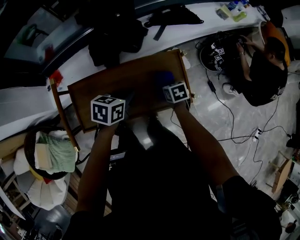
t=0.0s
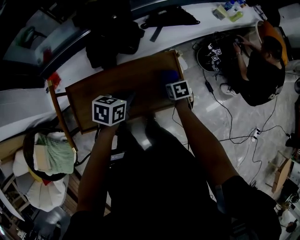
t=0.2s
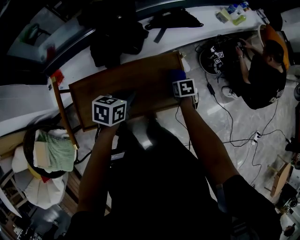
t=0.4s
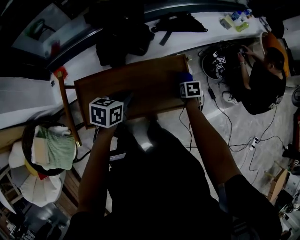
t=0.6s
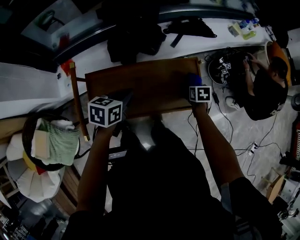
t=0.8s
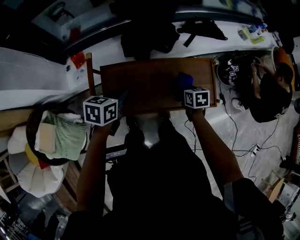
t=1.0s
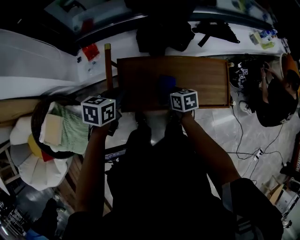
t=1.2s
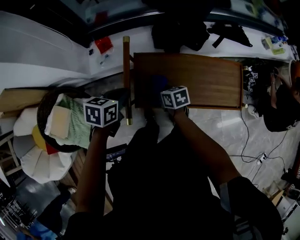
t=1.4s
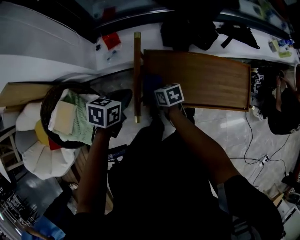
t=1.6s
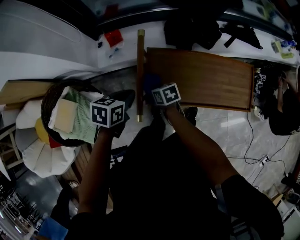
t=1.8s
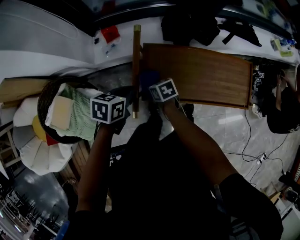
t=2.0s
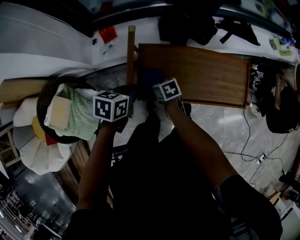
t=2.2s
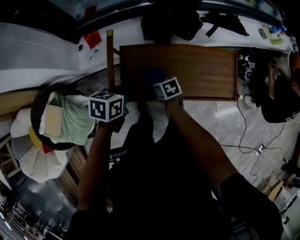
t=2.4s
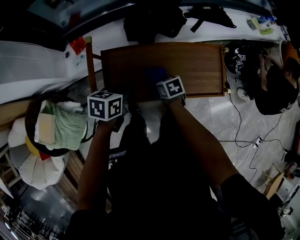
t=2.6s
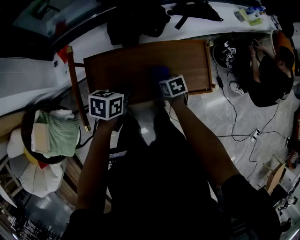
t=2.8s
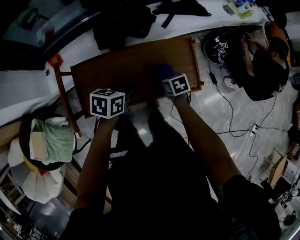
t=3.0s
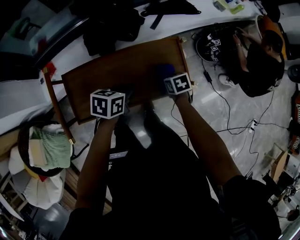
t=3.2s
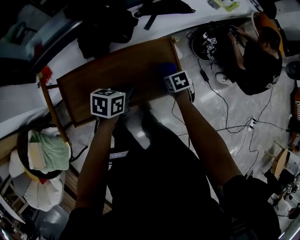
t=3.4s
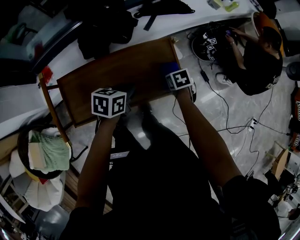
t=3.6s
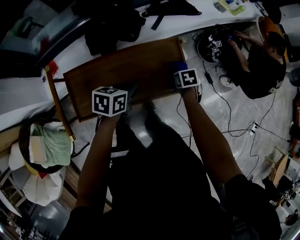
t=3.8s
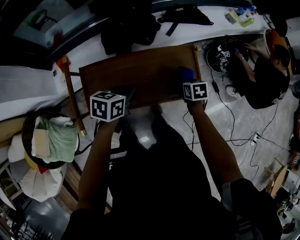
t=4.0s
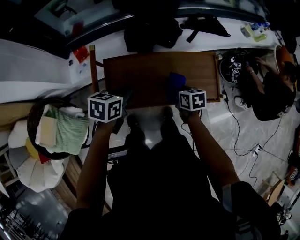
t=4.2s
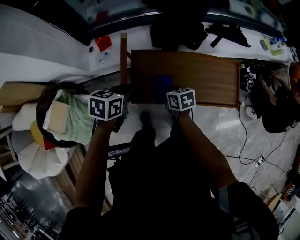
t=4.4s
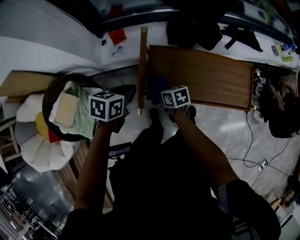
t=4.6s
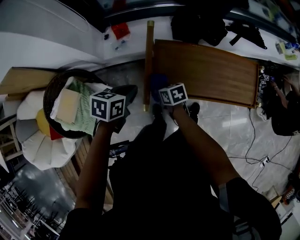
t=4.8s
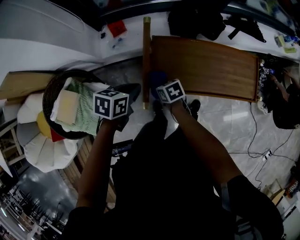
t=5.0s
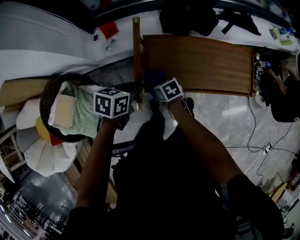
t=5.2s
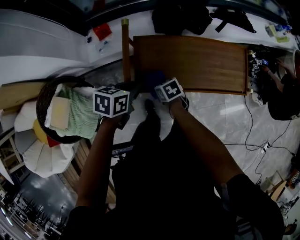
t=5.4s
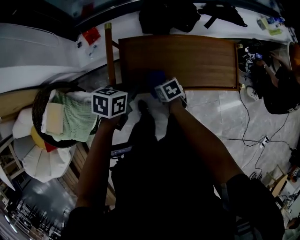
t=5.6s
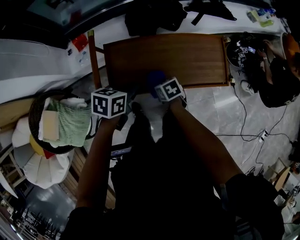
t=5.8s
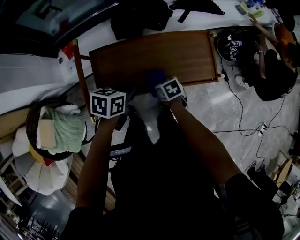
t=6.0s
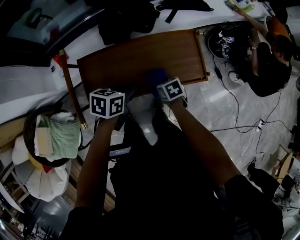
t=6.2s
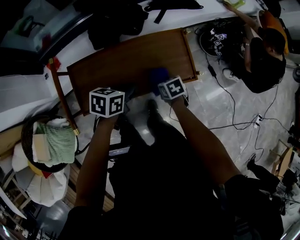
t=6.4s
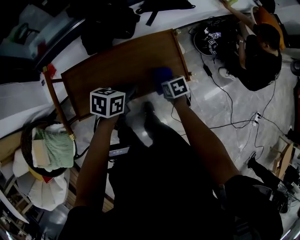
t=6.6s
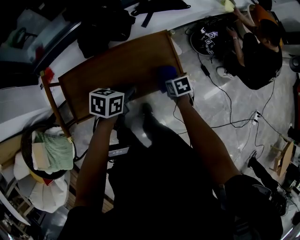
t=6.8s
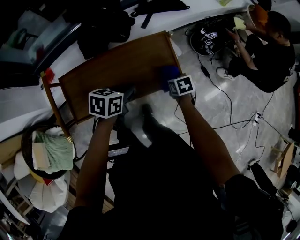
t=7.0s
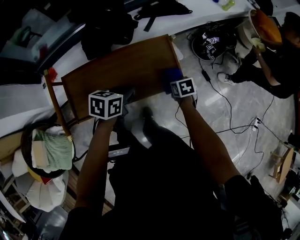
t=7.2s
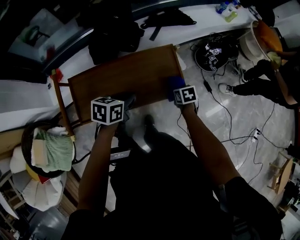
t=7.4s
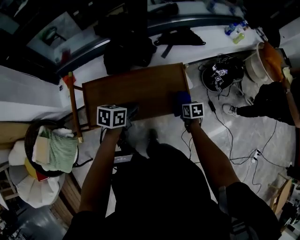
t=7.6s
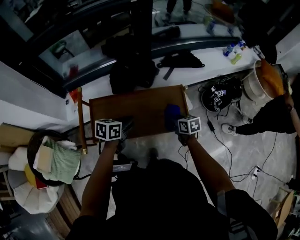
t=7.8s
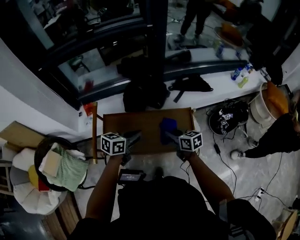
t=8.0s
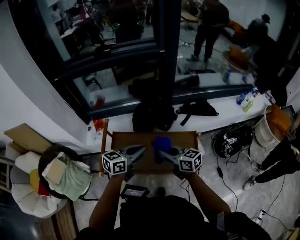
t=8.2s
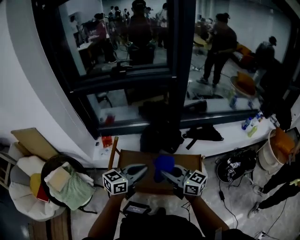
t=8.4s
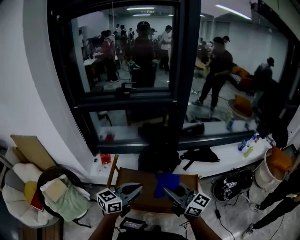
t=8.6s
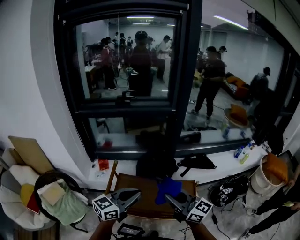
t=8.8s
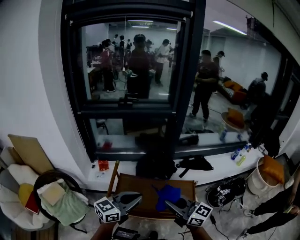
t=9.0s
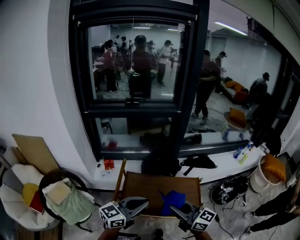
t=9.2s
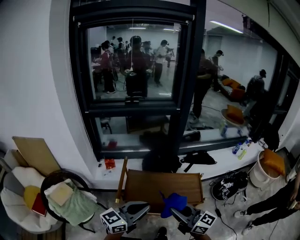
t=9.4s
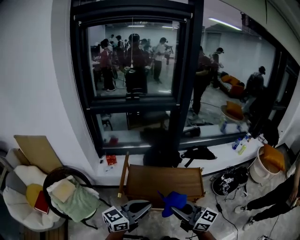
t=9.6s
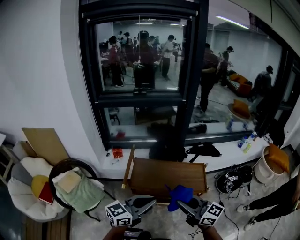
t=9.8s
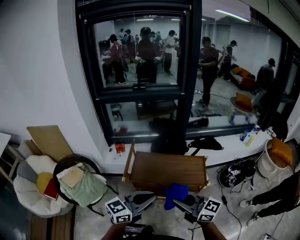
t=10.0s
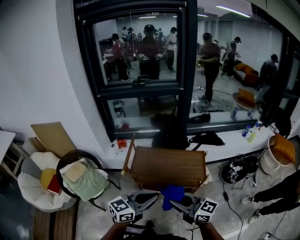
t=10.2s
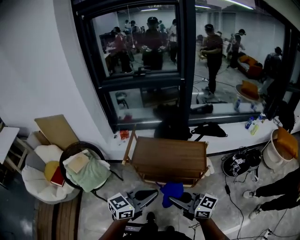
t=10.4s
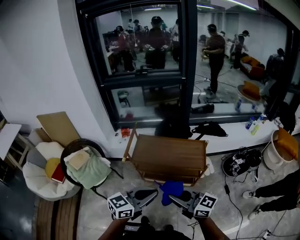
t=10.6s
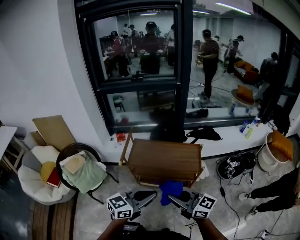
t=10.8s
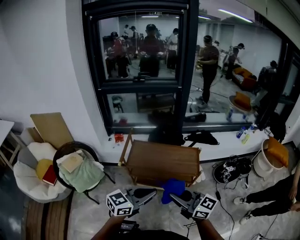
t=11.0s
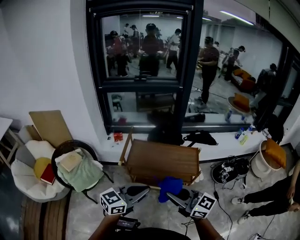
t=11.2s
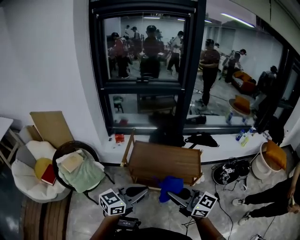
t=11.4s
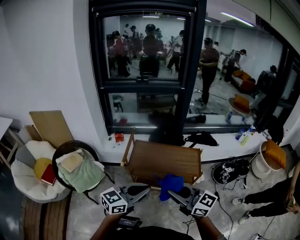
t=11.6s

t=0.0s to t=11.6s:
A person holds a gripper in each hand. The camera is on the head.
t=0.0s to t=1.4s: The left gripper changes place by some 35 cm. The right gripper moves some 40 cm, and swivels approximately 20 degrees.
t=1.4s to t=2.8s: Both grippers travel together to the right, approximately 25 cm.
t=2.8s to t=4.4s: The right gripper moves about 20 cm, while the left gripper changes place by some 20 cm.
t=4.4s to t=5.8s: The right gripper travels downward by roughly 5 cm, and moves roughly 15 cm to the left and comes back. The left gripper shifts approximately 10 cm to the right.
t=5.8s to t=7.2s: Both grippers travel together to the right, some 30 cm. The right gripper turns by about 20 degrees.
t=7.2s to t=8.8s: The left gripper shifts approximately 30 cm upward, and tilts its fingers about 40 degrees upward, while the right gripper travels upward by about 50 cm, and points its fingers about 70 degrees further upward.
t=8.8s to t=10.2s: Both grippers move backward, about 30 cm.
t=10.2s to t=11.6s: The right gripper moves about 5 cm. The left gripper moves to the left, approximately 5 cm.

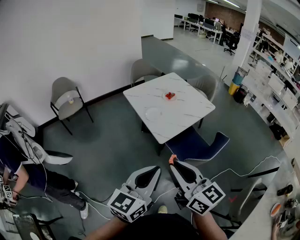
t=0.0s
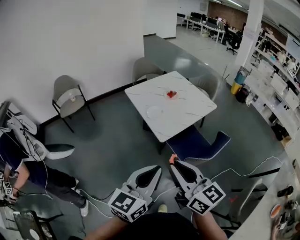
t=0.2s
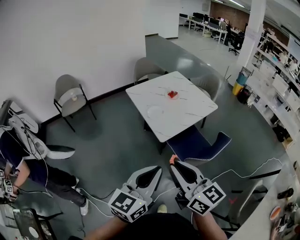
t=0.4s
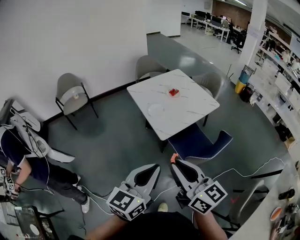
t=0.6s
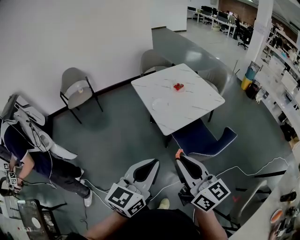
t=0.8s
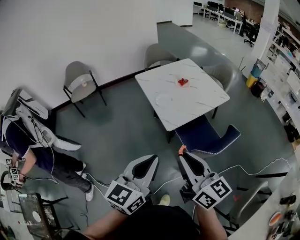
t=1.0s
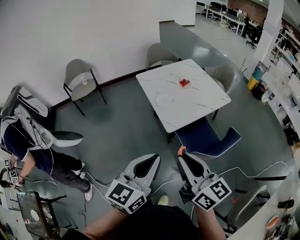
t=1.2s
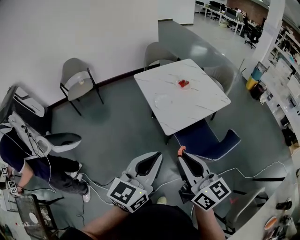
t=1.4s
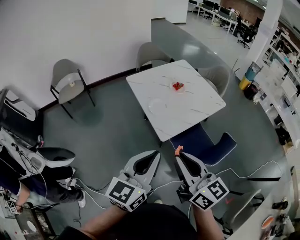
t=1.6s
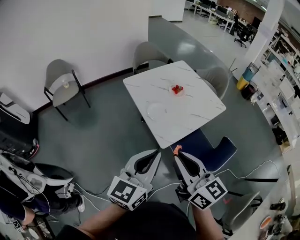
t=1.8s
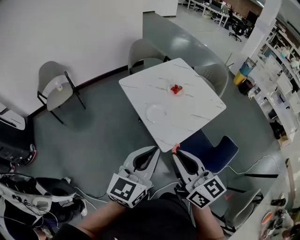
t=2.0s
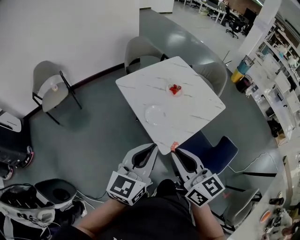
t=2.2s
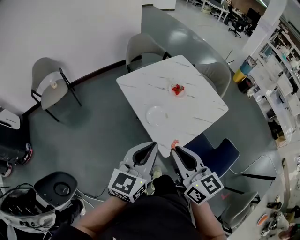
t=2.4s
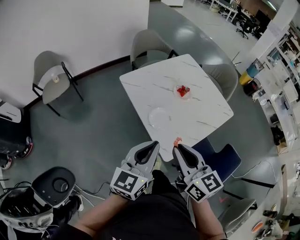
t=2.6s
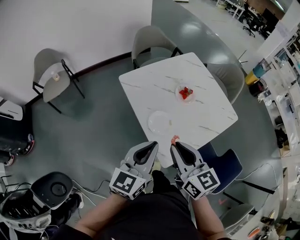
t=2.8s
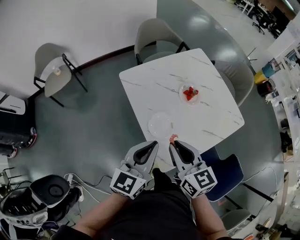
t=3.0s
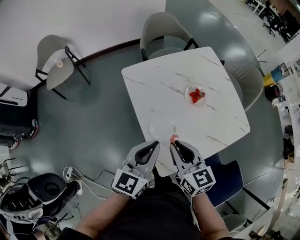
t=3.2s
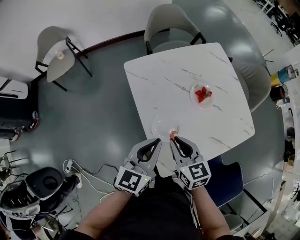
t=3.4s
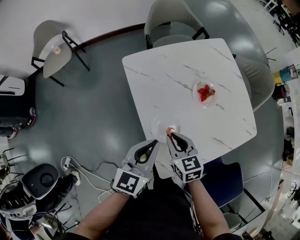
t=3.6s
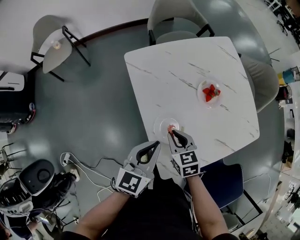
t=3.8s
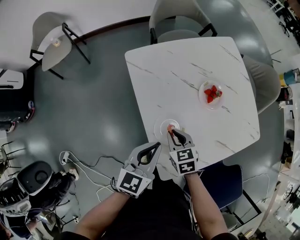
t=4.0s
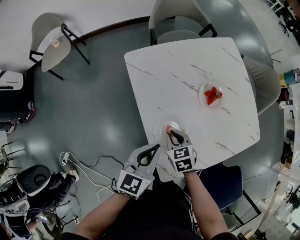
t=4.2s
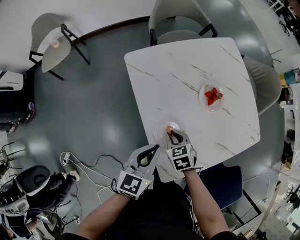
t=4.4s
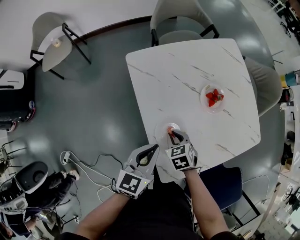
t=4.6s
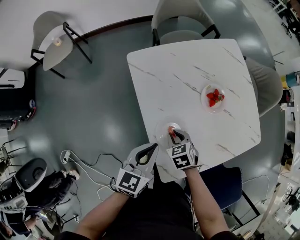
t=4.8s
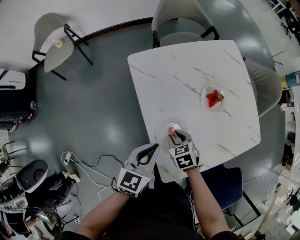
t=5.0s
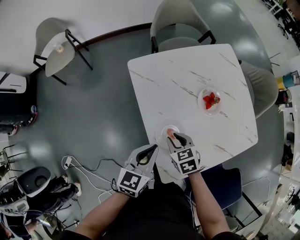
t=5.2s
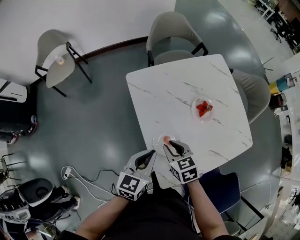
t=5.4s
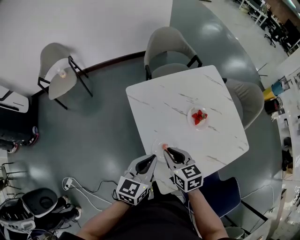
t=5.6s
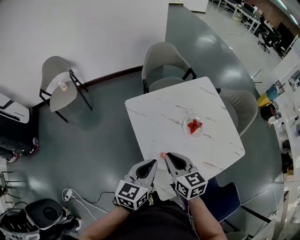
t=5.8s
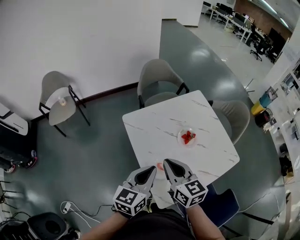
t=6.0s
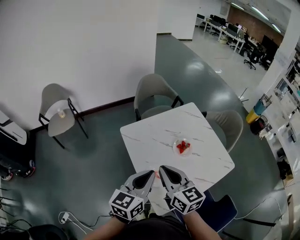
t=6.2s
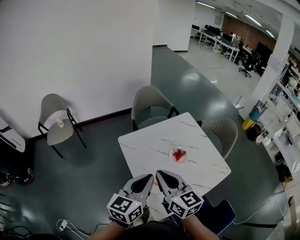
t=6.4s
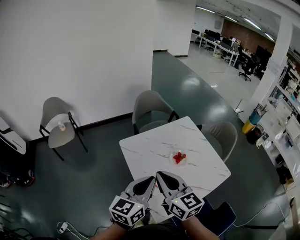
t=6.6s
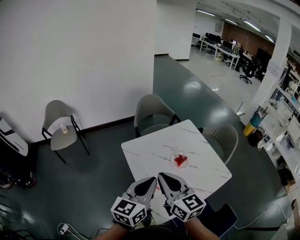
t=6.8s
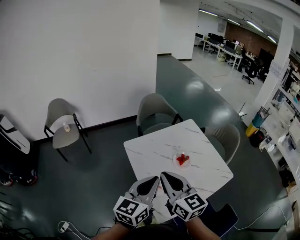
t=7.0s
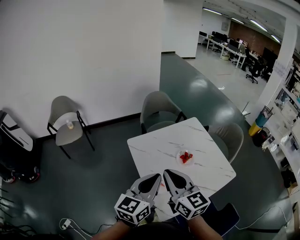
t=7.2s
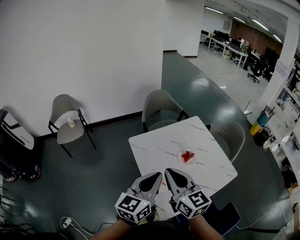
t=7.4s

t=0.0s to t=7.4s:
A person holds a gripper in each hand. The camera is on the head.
t=0.0s to t=1.4s: Both grippers move forward, approximately 5 cm.
t=1.4s to t=3.0s: Both grippers are carried forward, approximately 40 cm.
t=3.0s to t=4.4s: The right gripper shifts approximately 30 cm downward, and tips its fingers downward by roughly 40 degrees; the left gripper heads downward and forward, covering about 15 cm.
t=4.4s to t=6.0s: The right gripper moves upward, some 30 cm, and tips its fingers upward by some 40 degrees. Meanwhile the left gripper is displaced upward by approximately 15 cm.
t=6.0s to t=7.4s: The two grippers go approximately 10 cm upward.

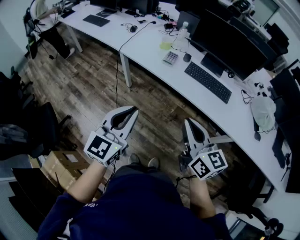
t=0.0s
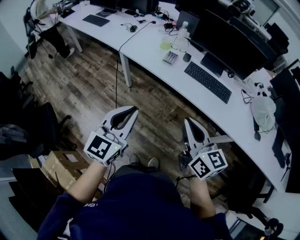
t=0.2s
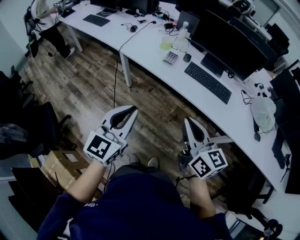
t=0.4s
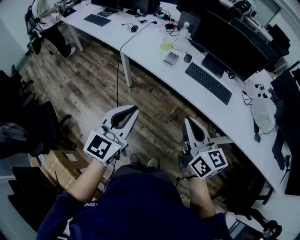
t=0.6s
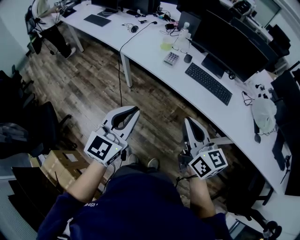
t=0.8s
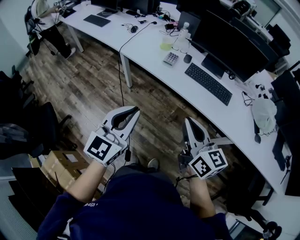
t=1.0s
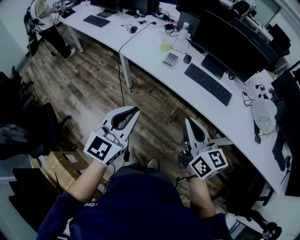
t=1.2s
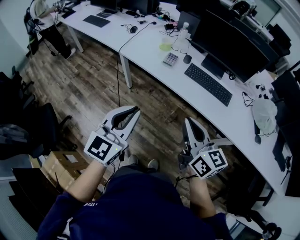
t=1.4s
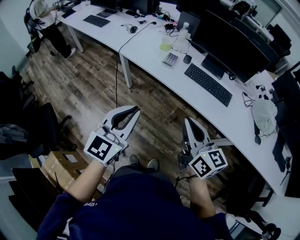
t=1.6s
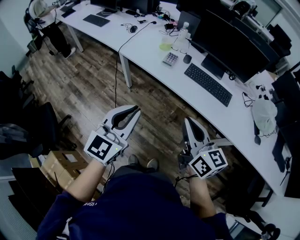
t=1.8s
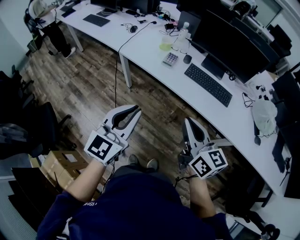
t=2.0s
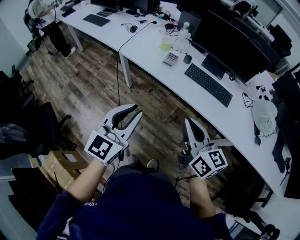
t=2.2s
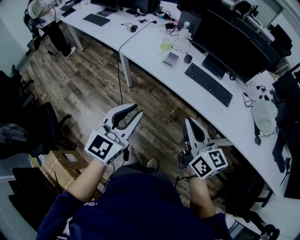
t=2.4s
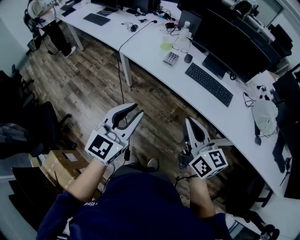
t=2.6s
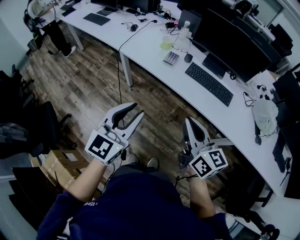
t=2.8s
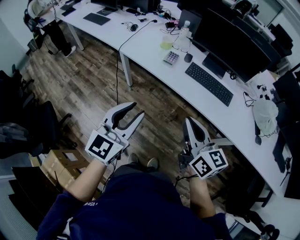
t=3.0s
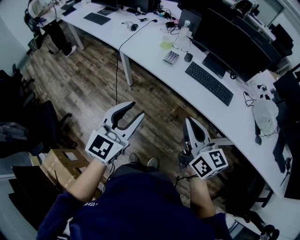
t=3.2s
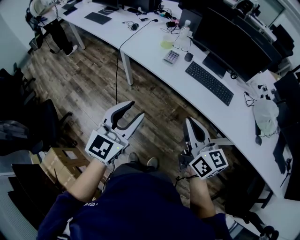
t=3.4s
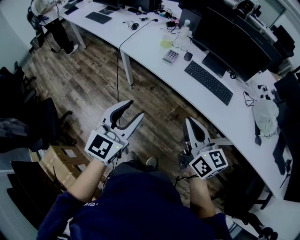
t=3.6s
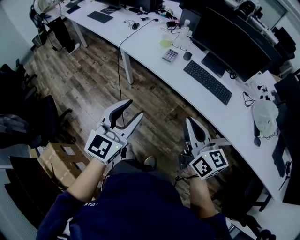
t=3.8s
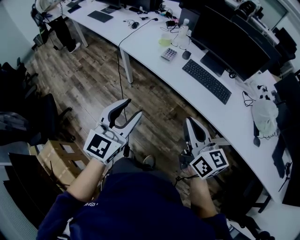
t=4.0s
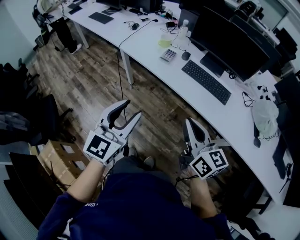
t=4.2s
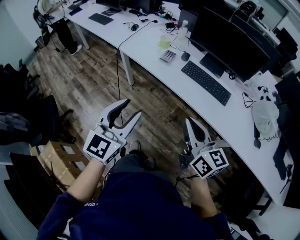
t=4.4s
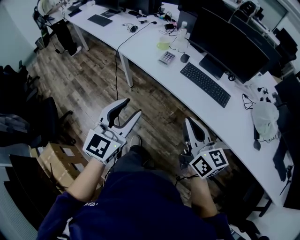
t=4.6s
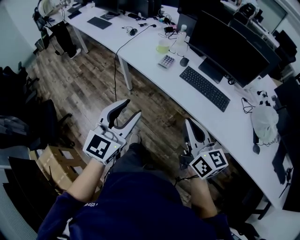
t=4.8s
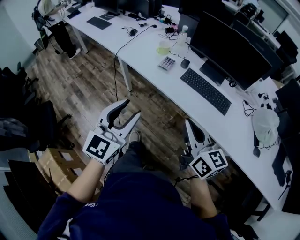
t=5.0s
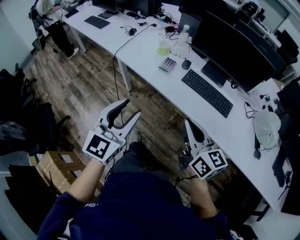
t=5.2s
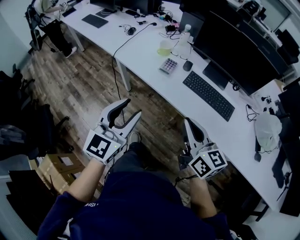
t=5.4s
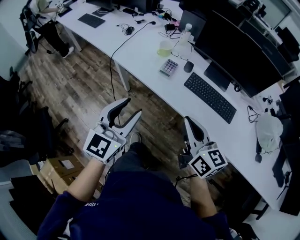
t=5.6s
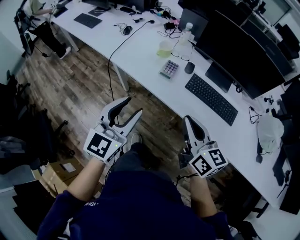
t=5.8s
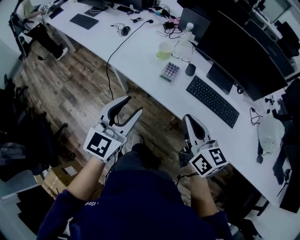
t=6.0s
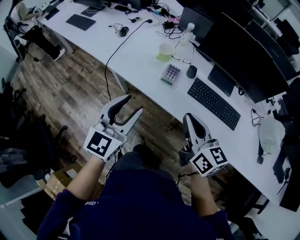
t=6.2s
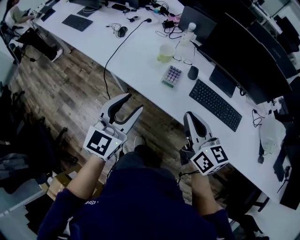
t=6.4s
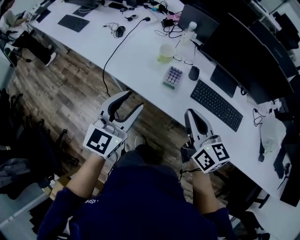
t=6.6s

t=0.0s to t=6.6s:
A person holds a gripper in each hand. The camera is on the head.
t=0.0s to t=1.6s: The grippers stay close to where they were, moving slightly.
t=1.6s to t=3.2s: The left gripper opens.
t=3.2s to t=5.0s: The grippers both shift to the right by approximately 5 cm.
t=5.0s to t=6.6s: The grippers both shift forward by roughly 30 cm.
